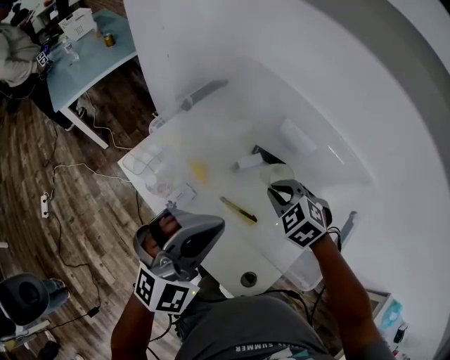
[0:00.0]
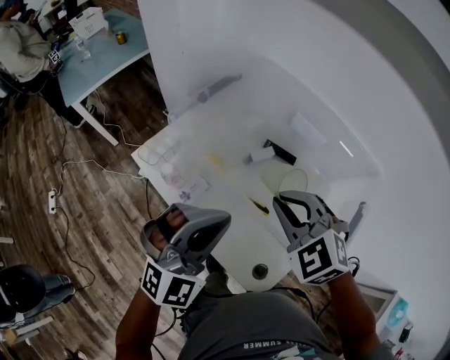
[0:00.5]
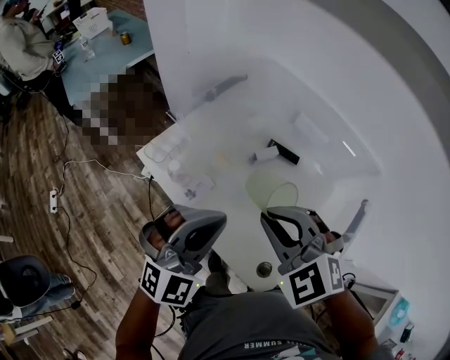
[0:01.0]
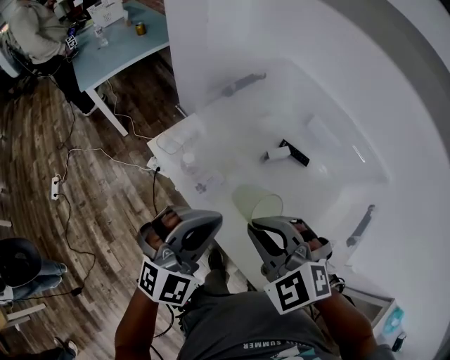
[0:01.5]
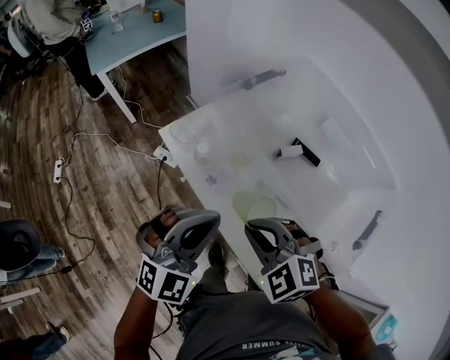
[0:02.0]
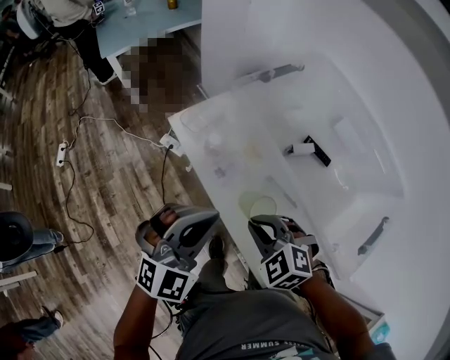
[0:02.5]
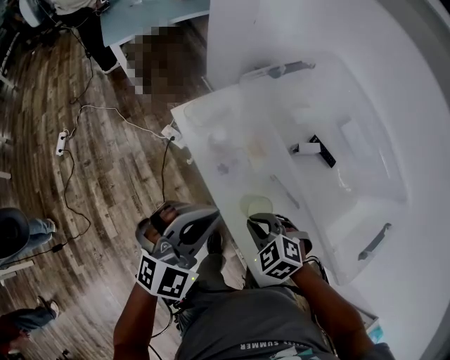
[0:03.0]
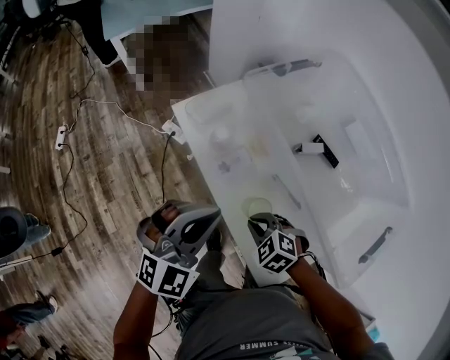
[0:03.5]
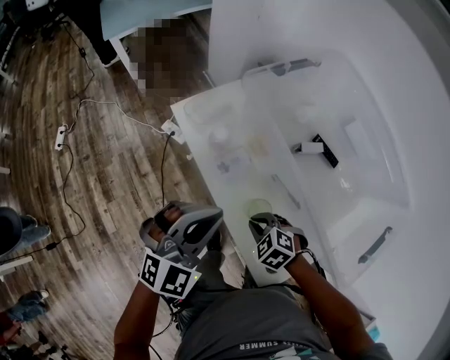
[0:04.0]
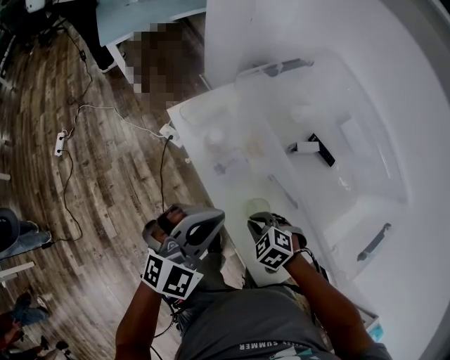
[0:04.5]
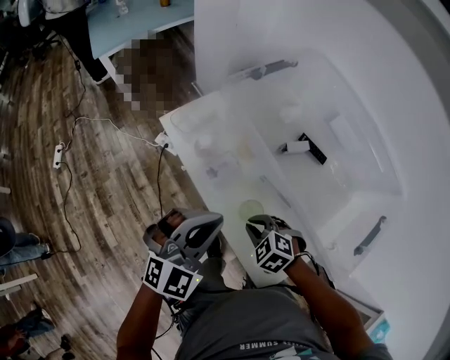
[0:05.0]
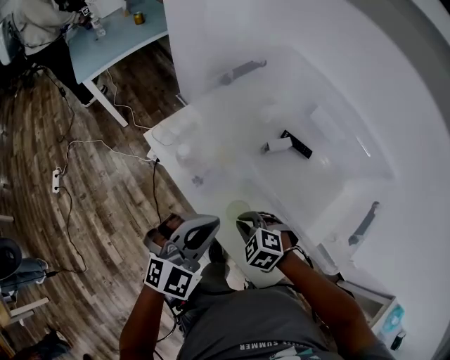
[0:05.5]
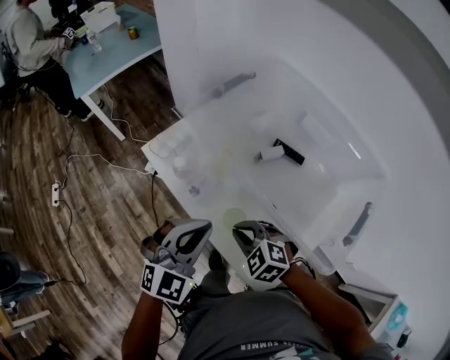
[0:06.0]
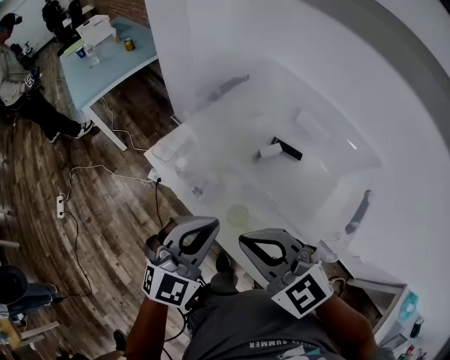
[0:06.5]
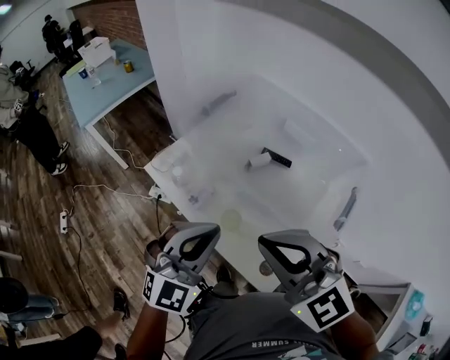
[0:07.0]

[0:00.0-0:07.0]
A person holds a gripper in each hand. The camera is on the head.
0:00.0 to 0:02.0: The right gripper moves to the left and backward, approximately 25 cm, and turns by approximately 20 degrees; the left gripper is displaced to the left and backward by about 15 cm.
0:02.0 to 0:03.5: The left gripper travels downward by about 5 cm. Meanwhile the right gripper goes about 20 cm downward, and turns by about 20 degrees.
0:03.5 to 0:05.0: The grippers move only a little.
0:05.0 to 0:07.0: The left gripper shifts approximately 15 cm upward and to the right; the right gripper goes some 35 cm upward, and tilts its fingers approximately 50 degrees upward.

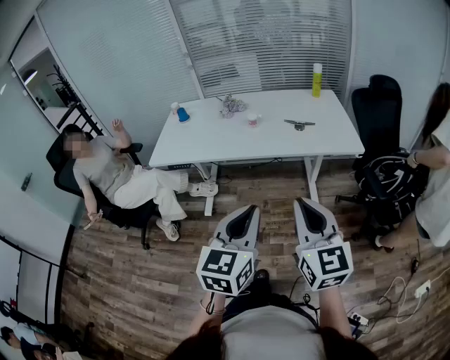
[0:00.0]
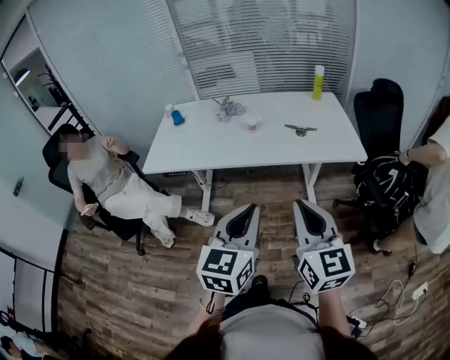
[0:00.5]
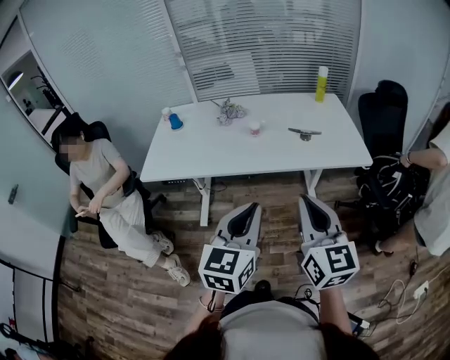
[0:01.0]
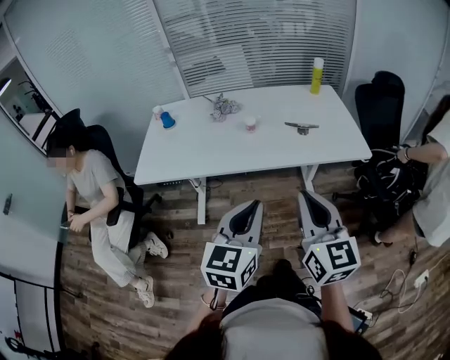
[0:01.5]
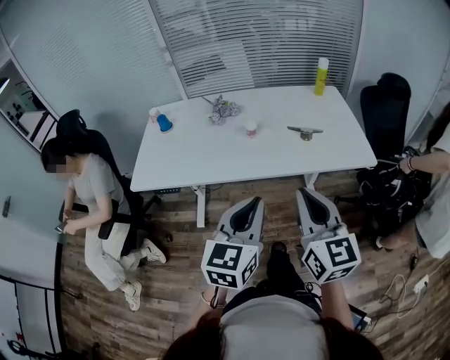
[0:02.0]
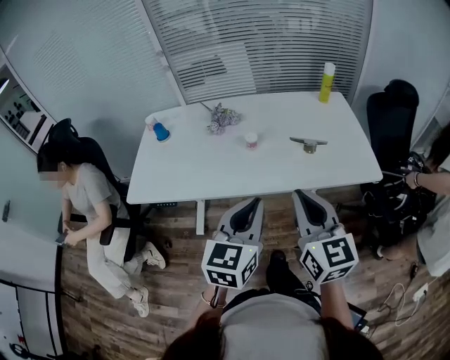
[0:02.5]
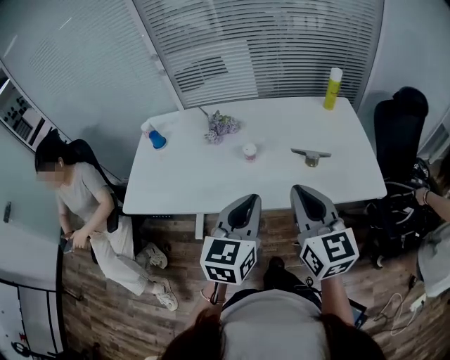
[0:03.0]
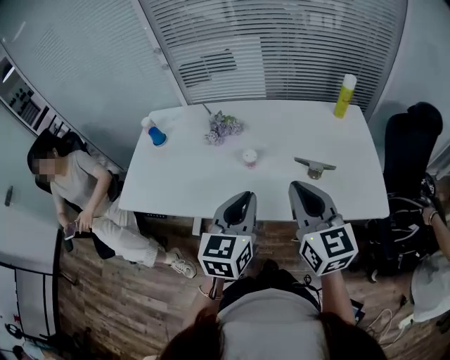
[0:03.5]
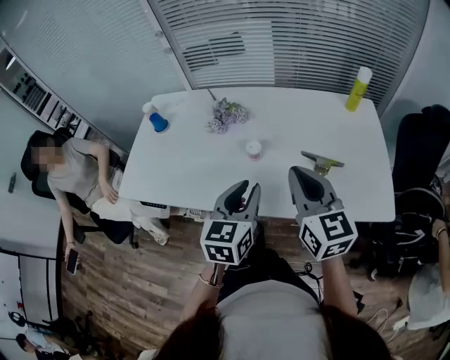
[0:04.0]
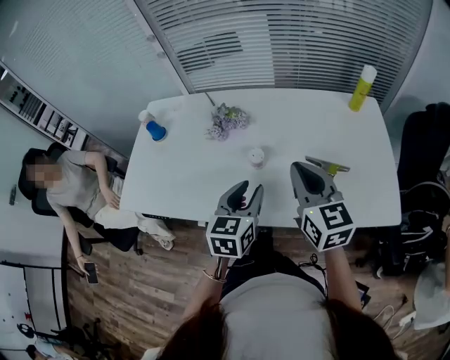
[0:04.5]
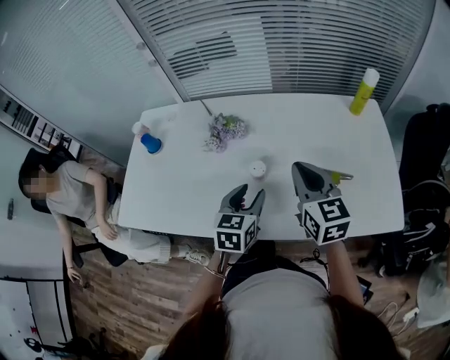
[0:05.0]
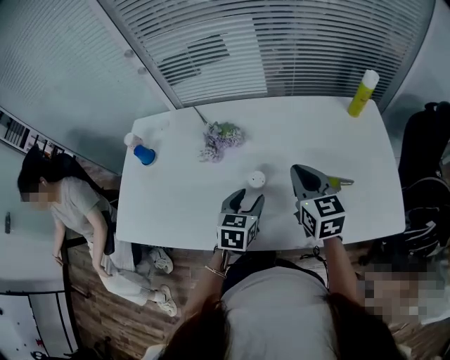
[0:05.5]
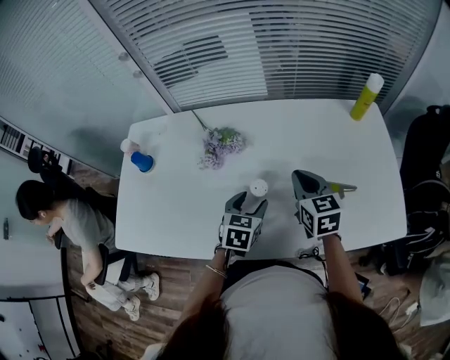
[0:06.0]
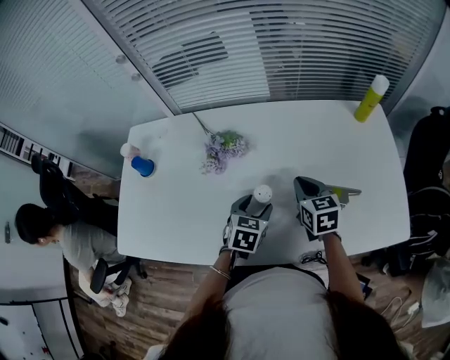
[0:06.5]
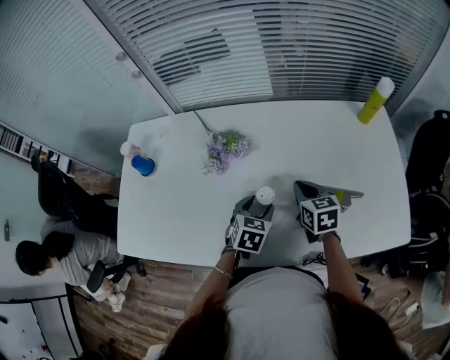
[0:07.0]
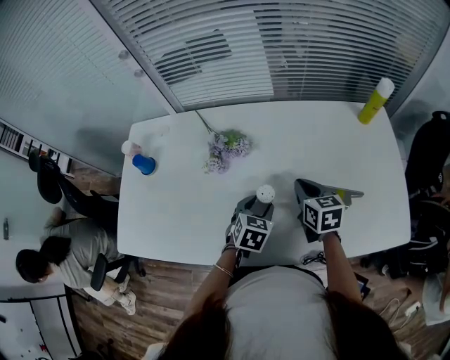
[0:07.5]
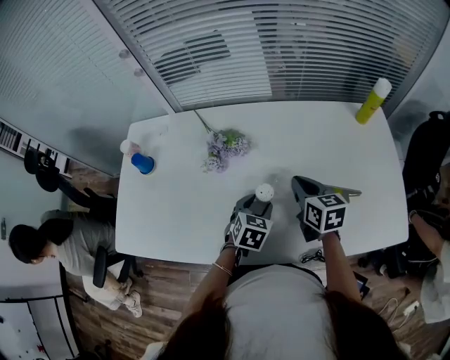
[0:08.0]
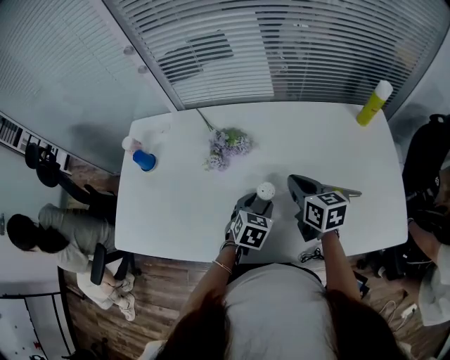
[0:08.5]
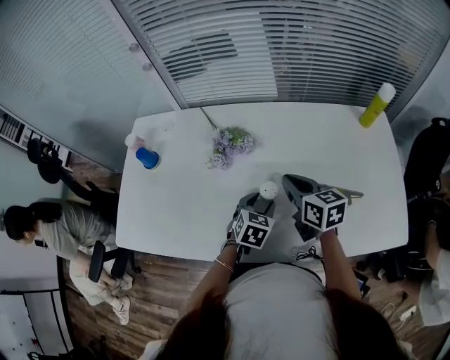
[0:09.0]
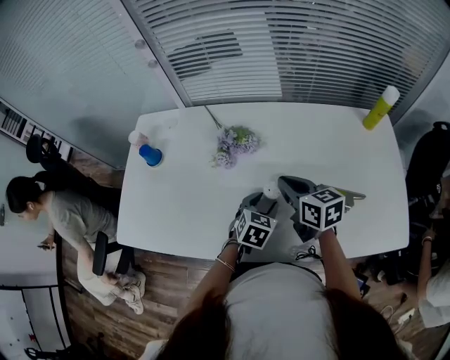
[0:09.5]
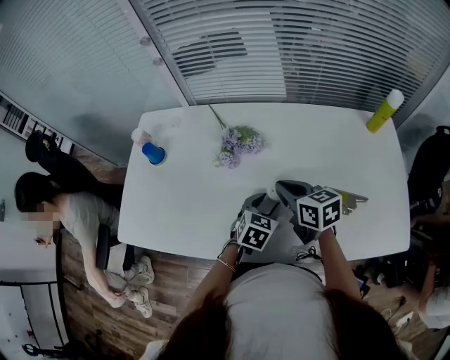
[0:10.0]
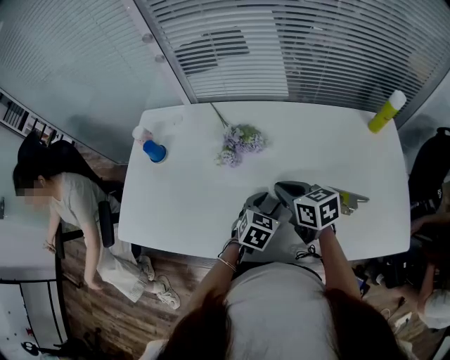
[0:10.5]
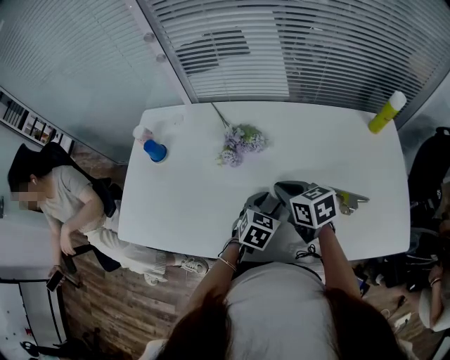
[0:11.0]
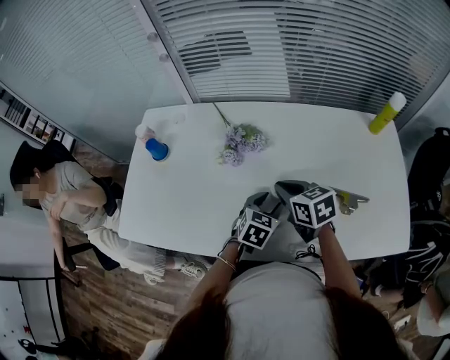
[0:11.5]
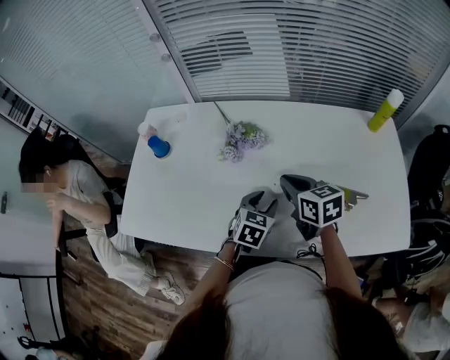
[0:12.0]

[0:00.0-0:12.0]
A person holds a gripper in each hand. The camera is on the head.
0:00.0 to 0:02.0: Both grippers move forward, approximately 20 cm.
0:02.0 to 0:04.0: Both grippers travel together forward, about 25 cm.
0:04.0 to 0:06.0: The left gripper moves downward and forward, about 25 cm, rotates roughly 30 degrees, and opens up; the right gripper is displaced forward and downward by about 25 cm, and changes its angle by approximately 20 degrees.
0:08.0 to 0:10.0: The right gripper shifts approximately 10 cm to the left.
0:10.0 to 0:12.0: The grippers stay close to where they were, moving slightly.

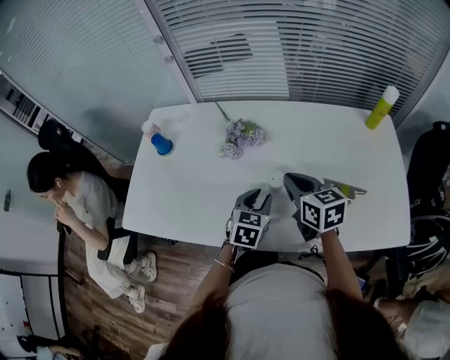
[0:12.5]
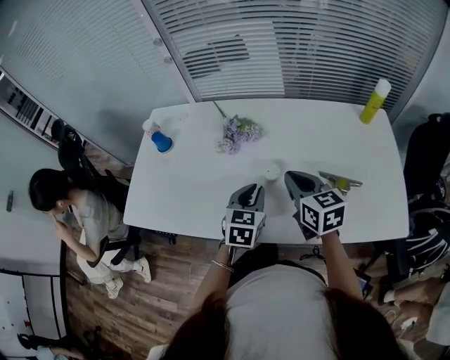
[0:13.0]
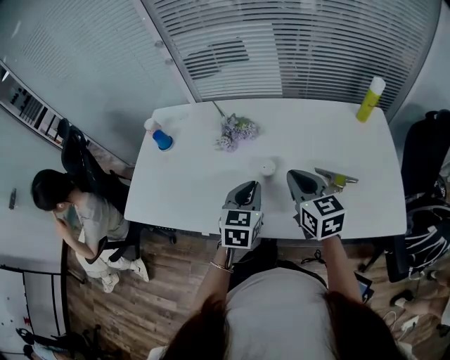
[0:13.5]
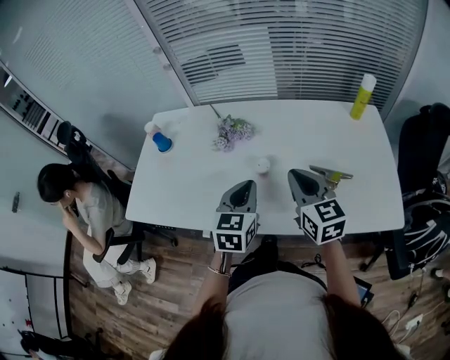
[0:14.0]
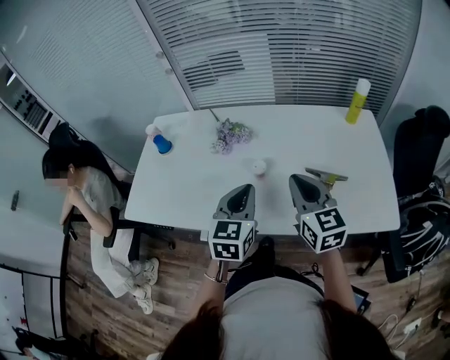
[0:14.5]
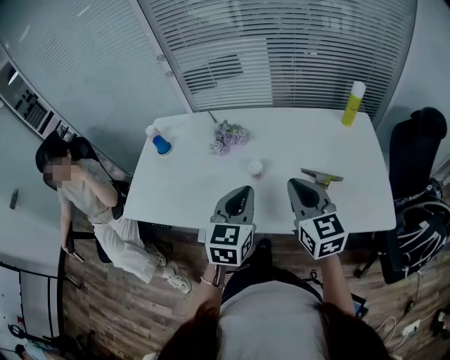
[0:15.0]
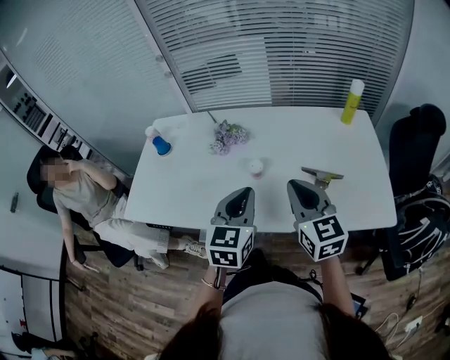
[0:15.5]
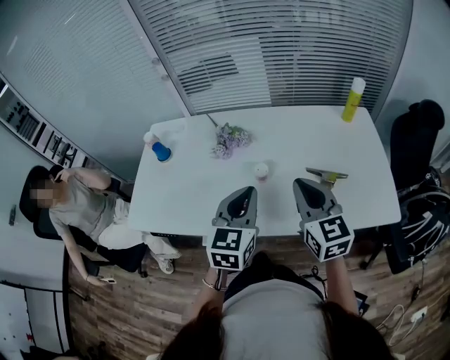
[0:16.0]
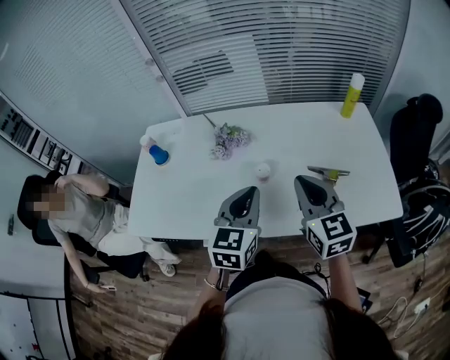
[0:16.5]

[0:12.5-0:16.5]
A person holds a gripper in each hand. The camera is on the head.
0:12.5 to 0:14.5: The left gripper goes some 15 cm upward and backward, and closes up; the right gripper shifts about 15 cm backward, upward and to the right, and turns by approximately 20 degrees.
0:14.5 to 0:16.5: There are only small adjustments of the grippers.

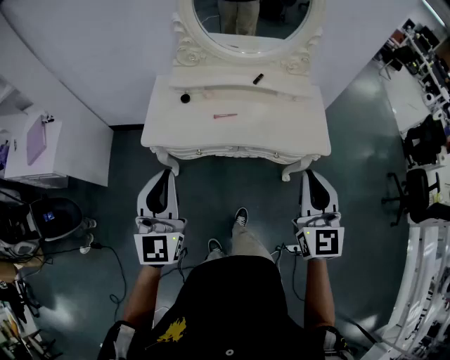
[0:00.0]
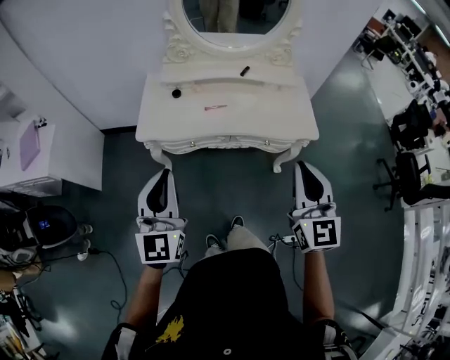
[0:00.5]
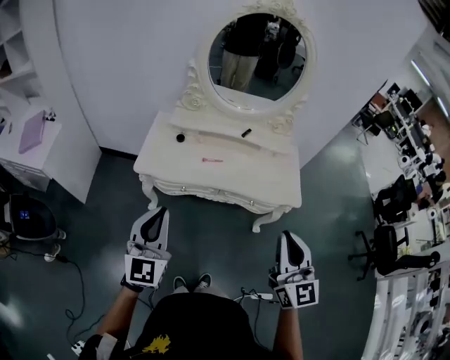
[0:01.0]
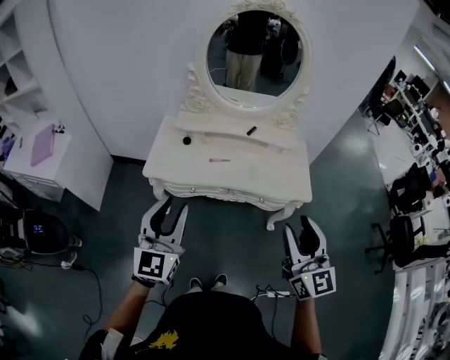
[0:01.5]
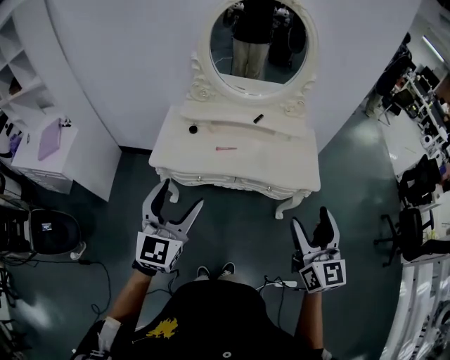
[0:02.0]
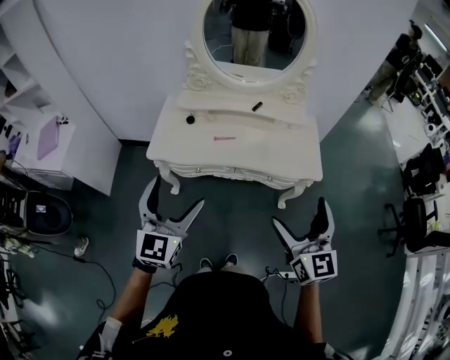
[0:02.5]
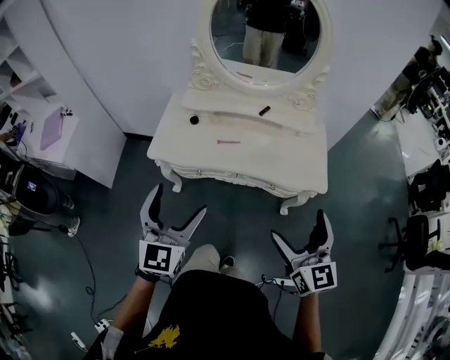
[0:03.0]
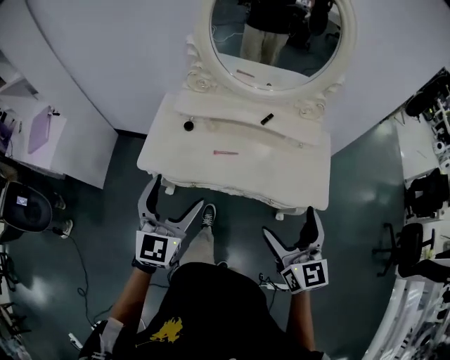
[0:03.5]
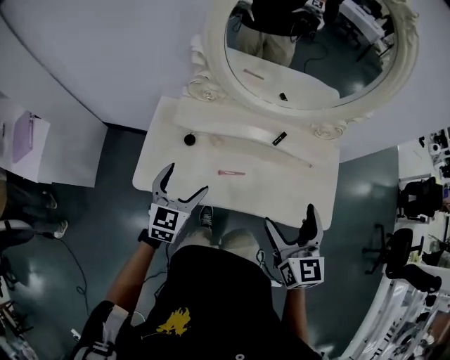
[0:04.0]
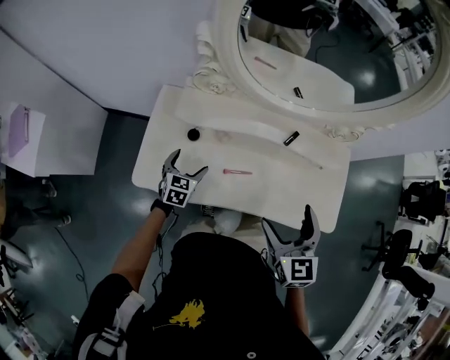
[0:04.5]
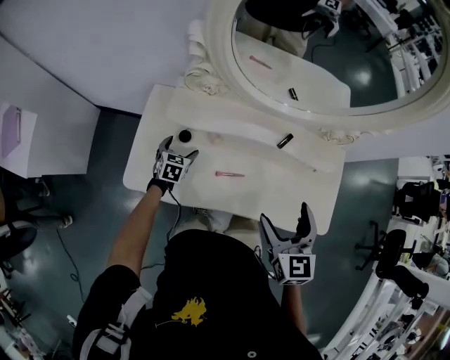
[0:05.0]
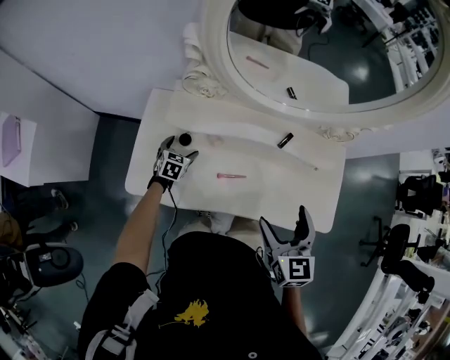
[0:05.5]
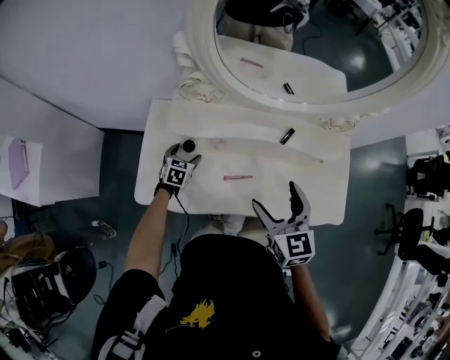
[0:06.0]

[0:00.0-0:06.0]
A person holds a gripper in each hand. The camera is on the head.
0:00.0 to 0:02.0: The left gripper changes place by some 5 cm, and opens up. Meanwhile the right gripper heads backward, covering some 5 cm, and opens its fingers.
0:02.0 to 0:04.0: The right gripper is displaced forward by roughly 40 cm. Meanwhile the left gripper is displaced forward and downward by some 50 cm, and rotates approximately 20 degrees.
0:04.0 to 0:06.0: The right gripper moves forward, downward and to the left, about 15 cm. Meanwhile the left gripper travels downward and forward by about 35 cm, and changes its angle by about 20 degrees.
